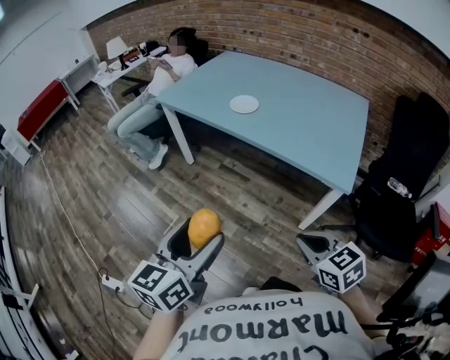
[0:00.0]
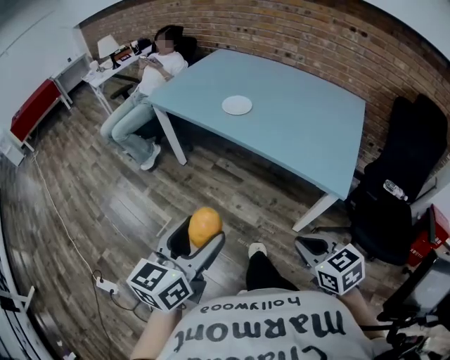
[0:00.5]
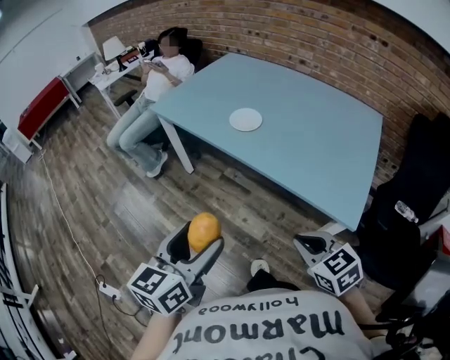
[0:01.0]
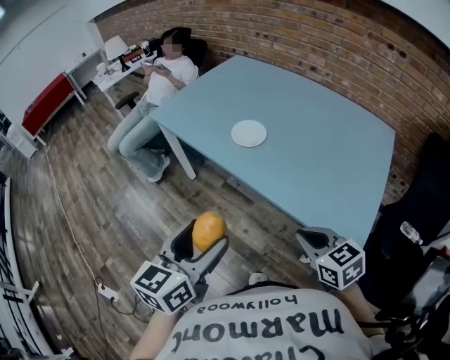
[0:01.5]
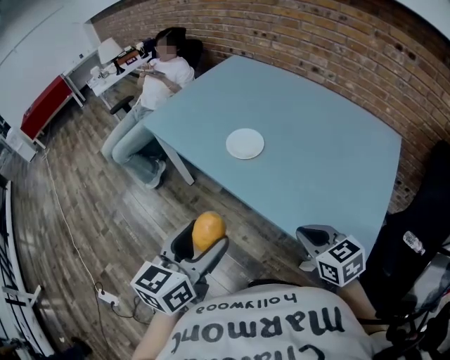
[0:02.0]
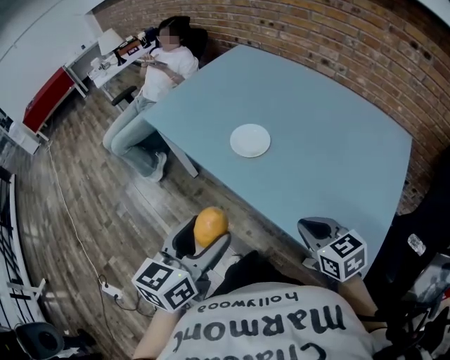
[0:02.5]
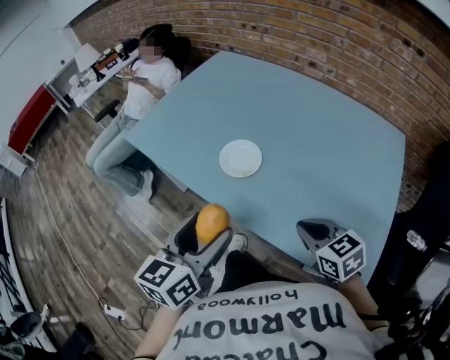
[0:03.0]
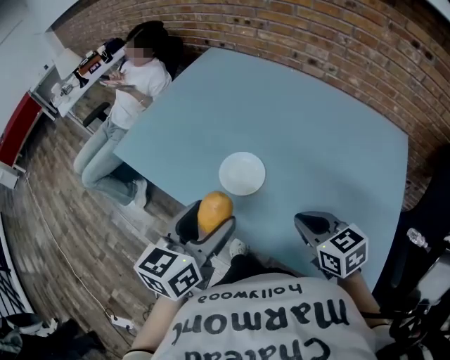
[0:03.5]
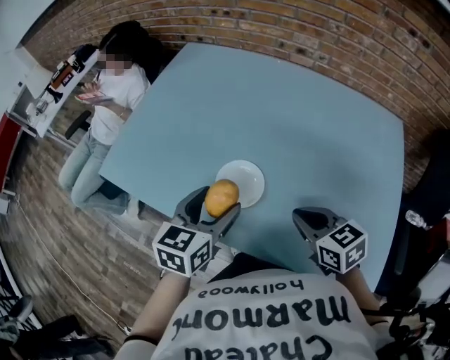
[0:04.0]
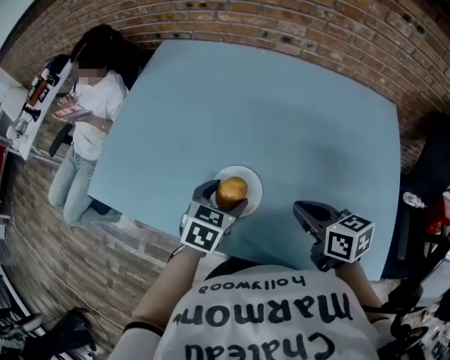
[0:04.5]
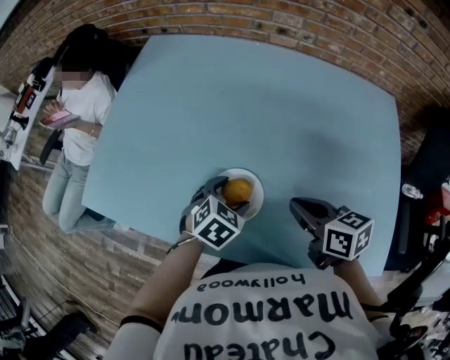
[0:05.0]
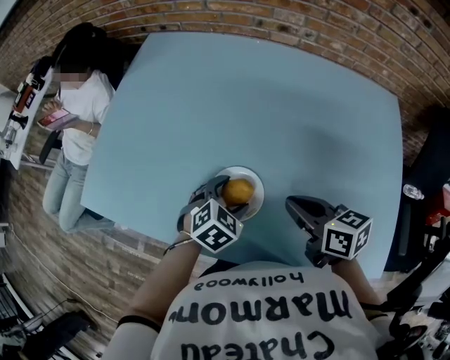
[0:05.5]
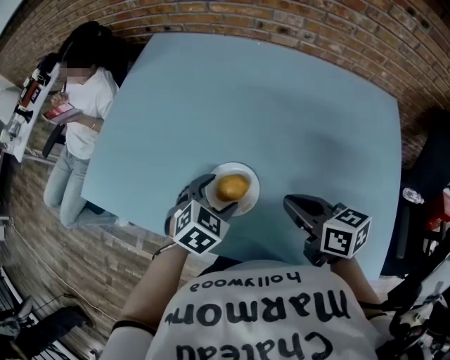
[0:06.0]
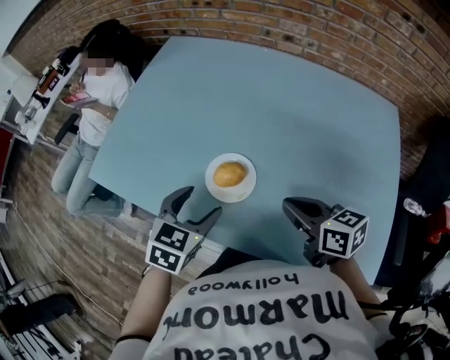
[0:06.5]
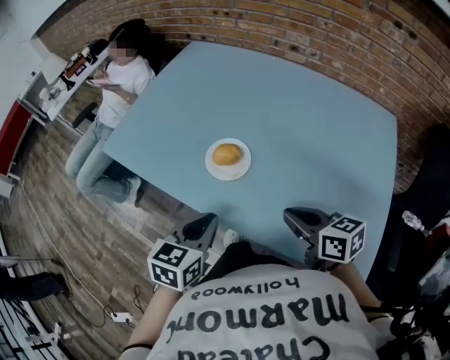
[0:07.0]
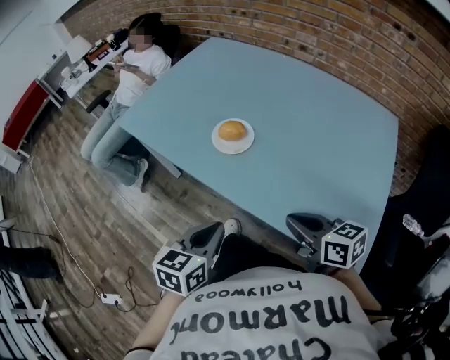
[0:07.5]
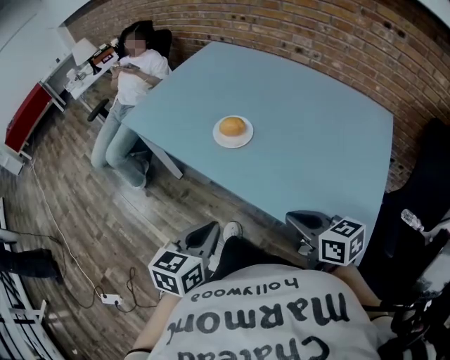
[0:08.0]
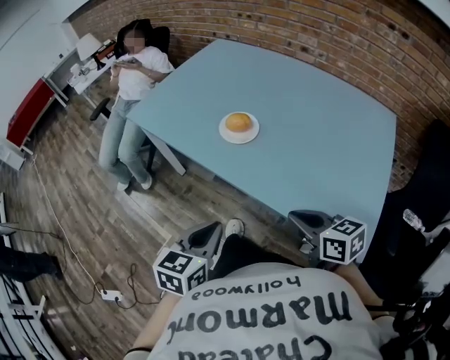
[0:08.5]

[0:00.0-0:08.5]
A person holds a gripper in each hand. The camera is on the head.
0:00.0 to 0:02.0: The two grippers go roughly 35 cm forward.
0:02.0 to 0:04.0: The grippers both shift forward by approximately 30 cm. The left gripper changes its angle by roughly 20 degrees.
0:04.0 to 0:06.5: The right gripper reaches about 10 cm forward, then returns, and turns by some 20 degrees; the left gripper goes downward and returns, some 15 cm each way, and rotates approximately 20 degrees.
0:06.5 to 0:08.5: Both grippers move backward, approximately 30 cm. The left gripper changes its angle by some 30 degrees, and closes.

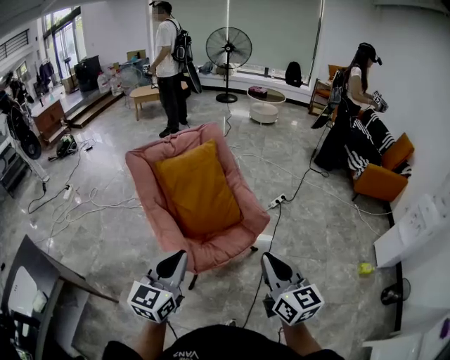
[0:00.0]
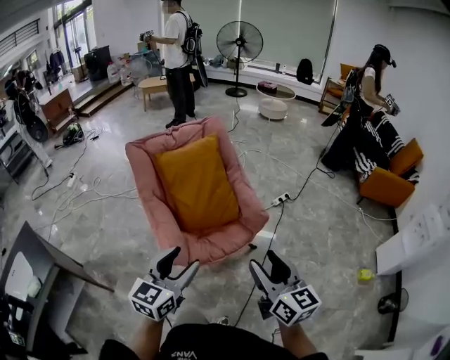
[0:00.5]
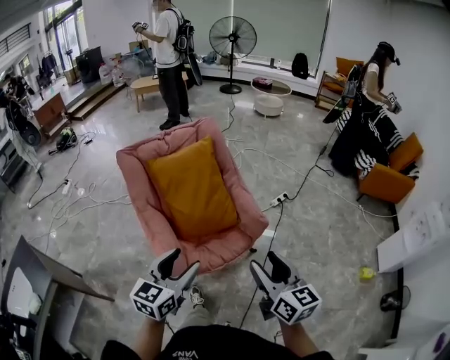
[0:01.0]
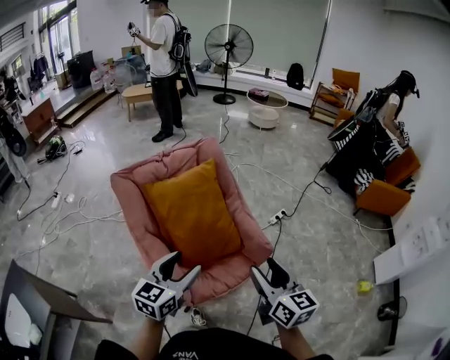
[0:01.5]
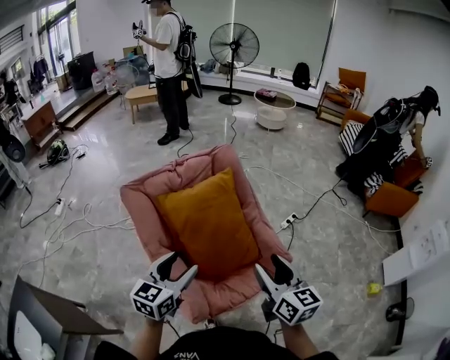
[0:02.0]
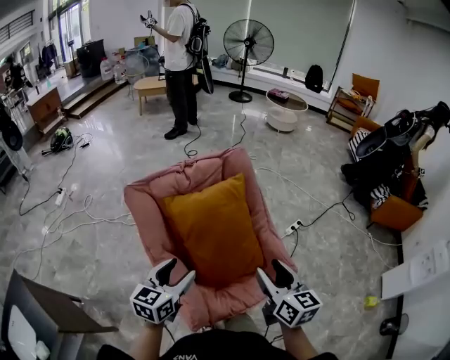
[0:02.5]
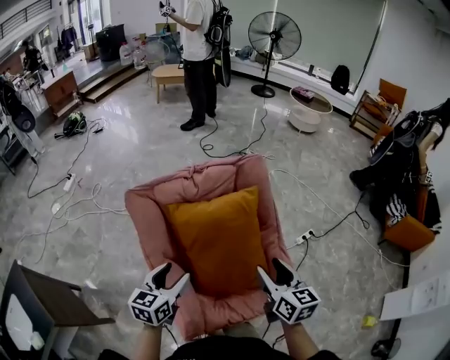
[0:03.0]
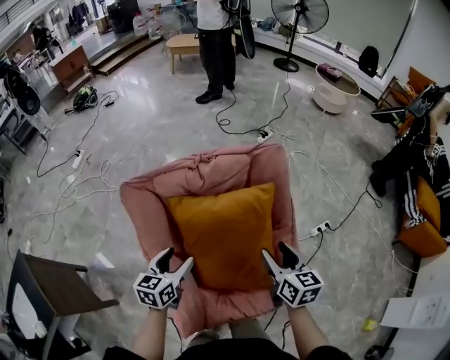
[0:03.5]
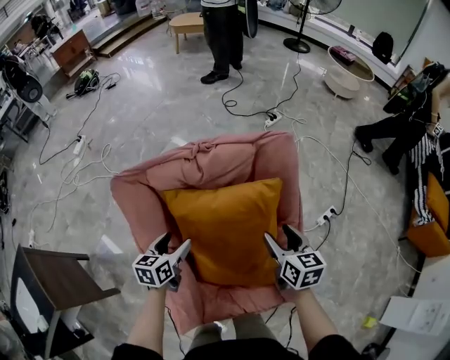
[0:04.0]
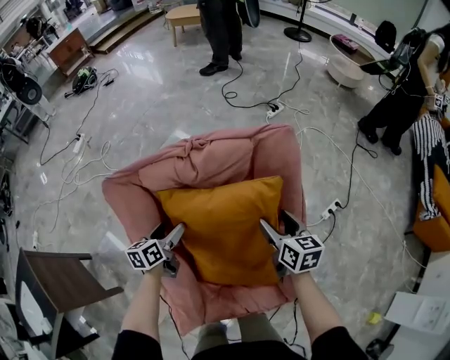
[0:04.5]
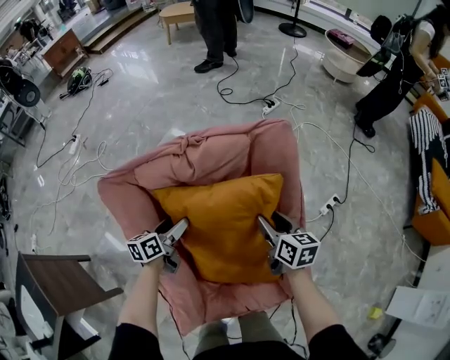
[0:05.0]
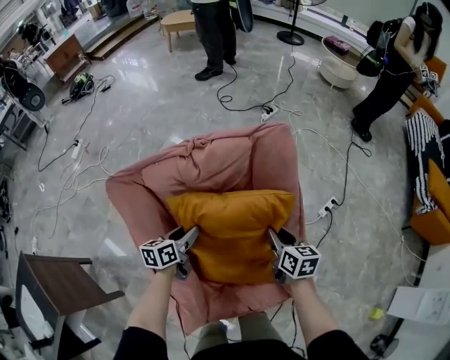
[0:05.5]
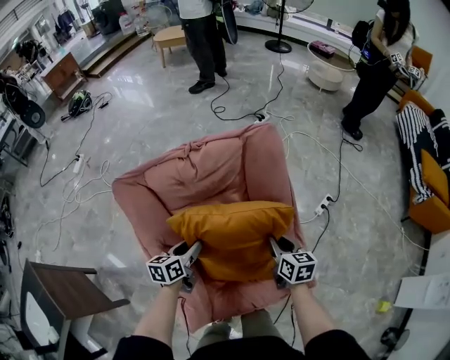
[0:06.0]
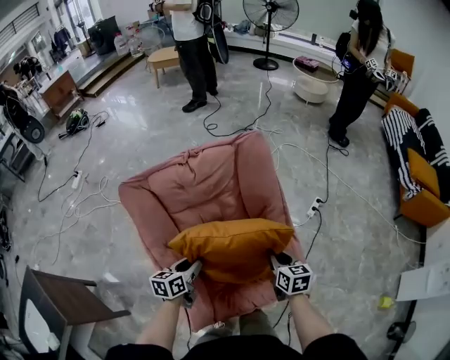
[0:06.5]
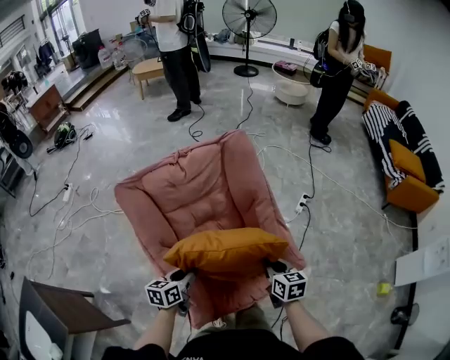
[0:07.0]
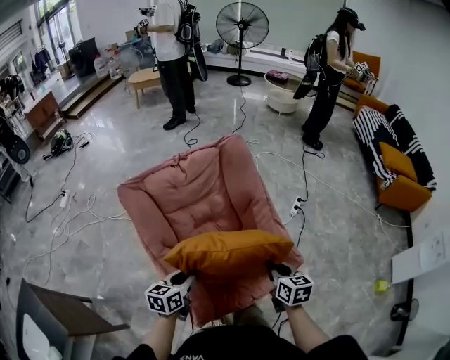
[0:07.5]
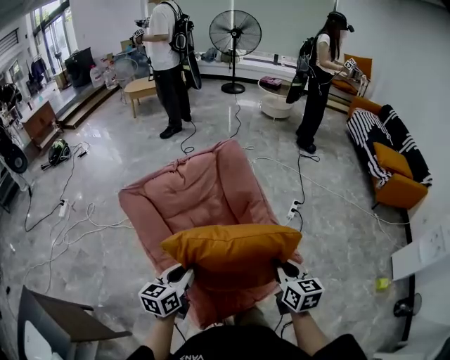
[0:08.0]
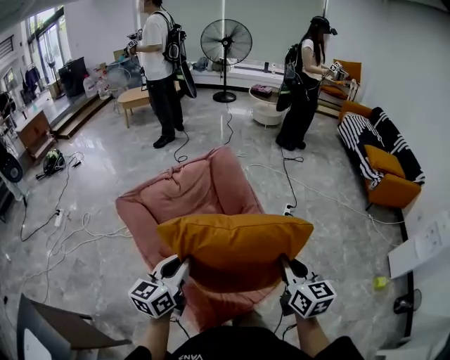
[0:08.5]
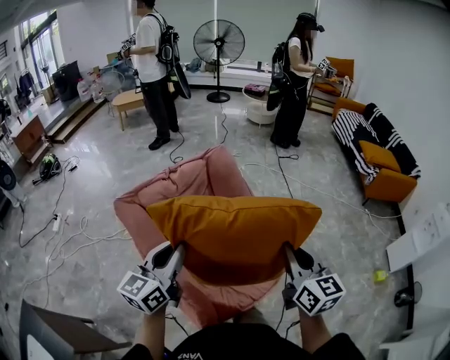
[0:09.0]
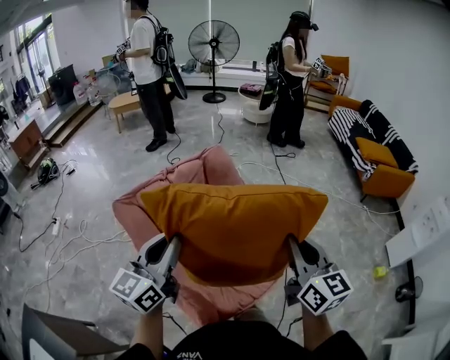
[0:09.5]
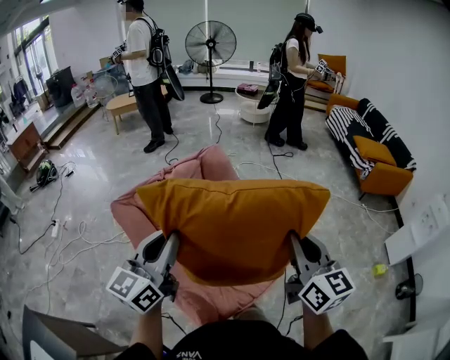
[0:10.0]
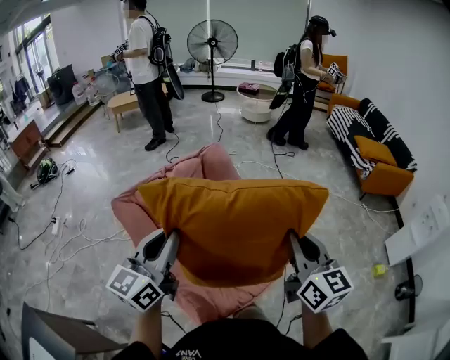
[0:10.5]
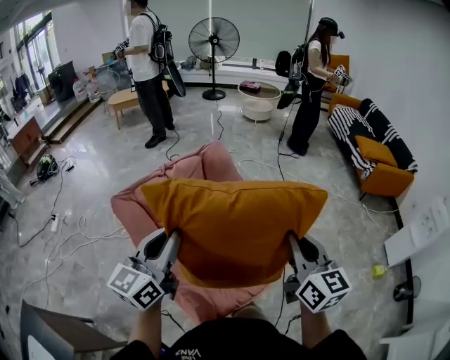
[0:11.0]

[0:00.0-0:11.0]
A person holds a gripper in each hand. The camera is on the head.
0:00.0 to 0:02.0: Both grippers move forward, approximately 30 cm. The right gripper opens up; the left gripper opens up.
0:02.0 to 0:03.5: The grippers both shift forward and downward by some 30 cm. The left gripper turns by roughly 30 degrees. The right gripper swivels some 20 degrees.
0:03.5 to 0:05.5: The grippers both shift downward and forward by some 15 cm. The right gripper closes, while the left gripper turns by some 20 degrees.
0:05.5 to 0:07.5: Both grippers move backward, roughly 25 cm. The left gripper swivels approximately 20 degrees.
0:07.5 to 0:09.0: Both grippers travel together upward, about 25 cm. The left gripper turns by some 30 degrees. Meanwhile the right gripper swivels some 30 degrees.
0:09.0 to 0:11.0: The left gripper is displaced upward by roughly 5 cm.

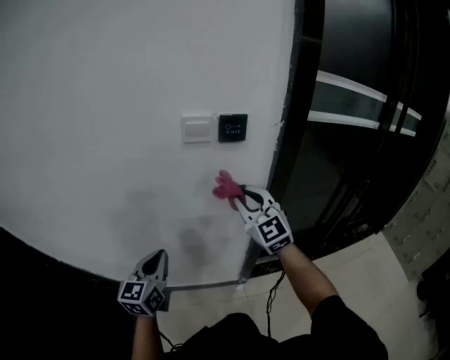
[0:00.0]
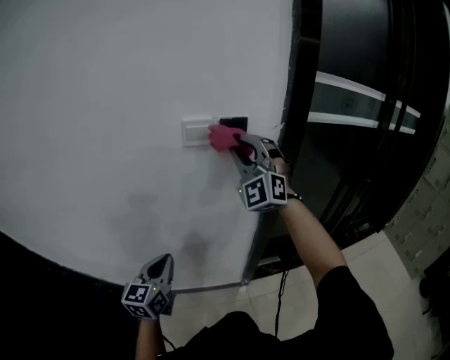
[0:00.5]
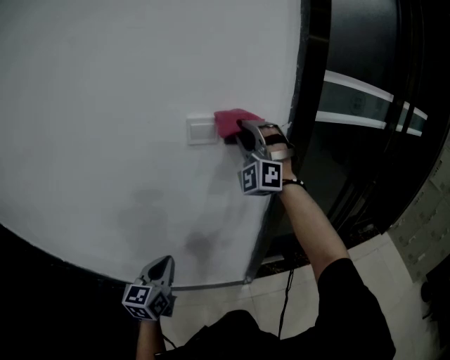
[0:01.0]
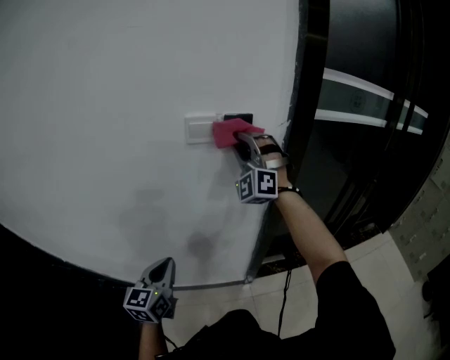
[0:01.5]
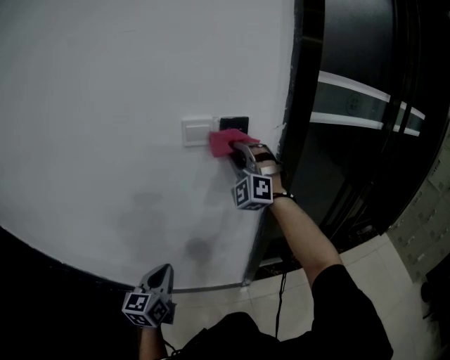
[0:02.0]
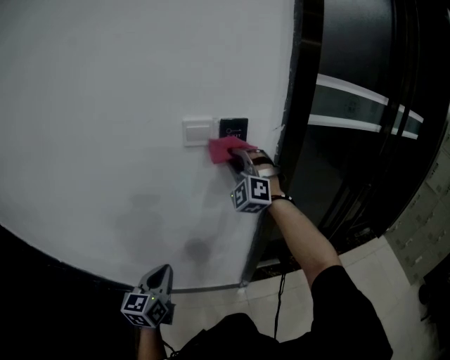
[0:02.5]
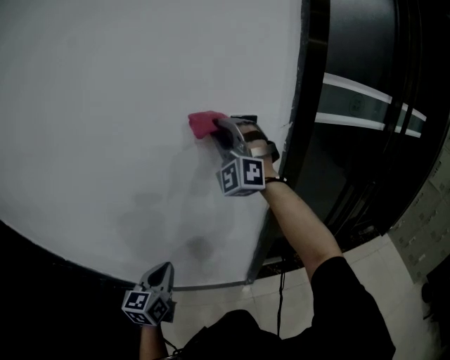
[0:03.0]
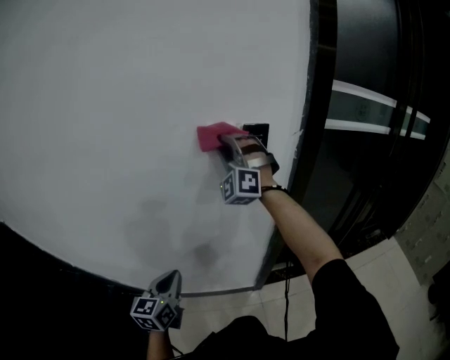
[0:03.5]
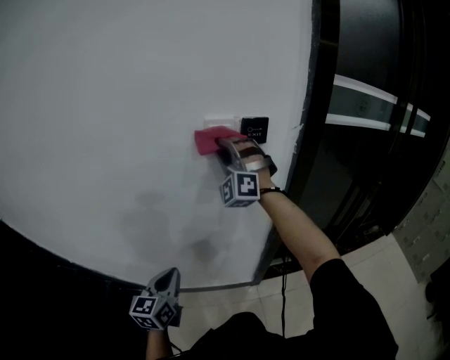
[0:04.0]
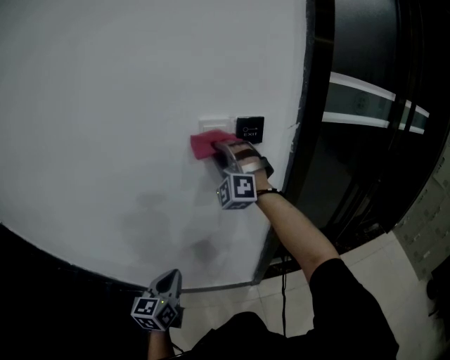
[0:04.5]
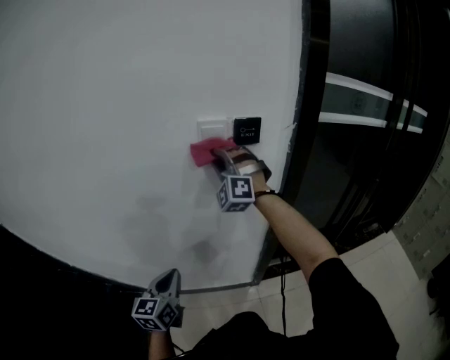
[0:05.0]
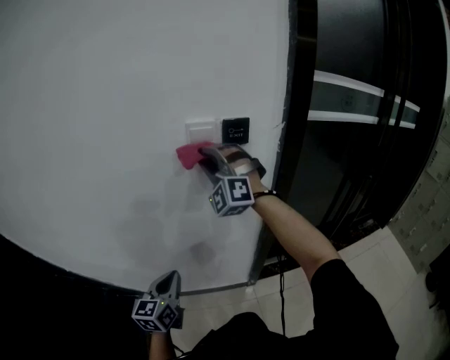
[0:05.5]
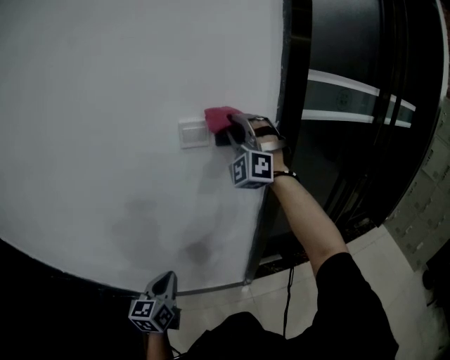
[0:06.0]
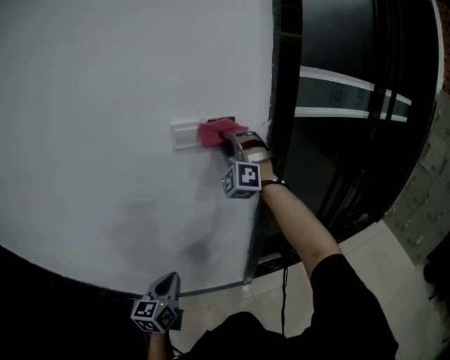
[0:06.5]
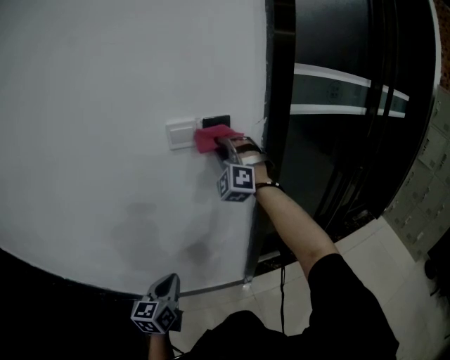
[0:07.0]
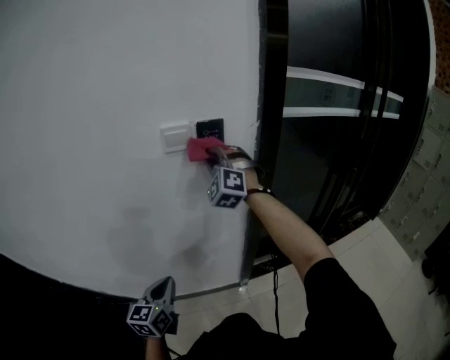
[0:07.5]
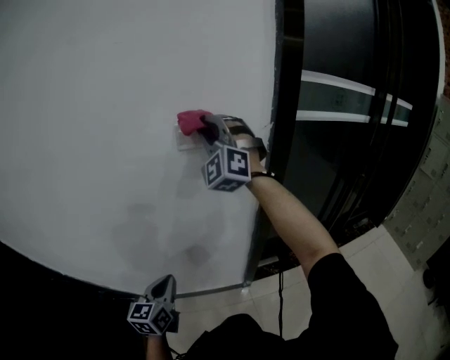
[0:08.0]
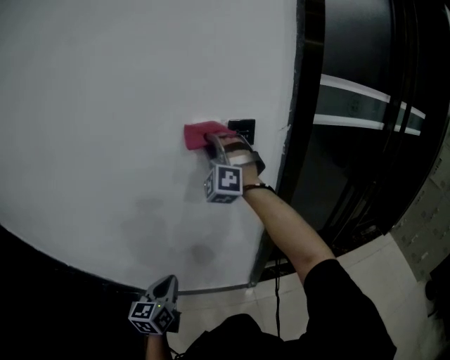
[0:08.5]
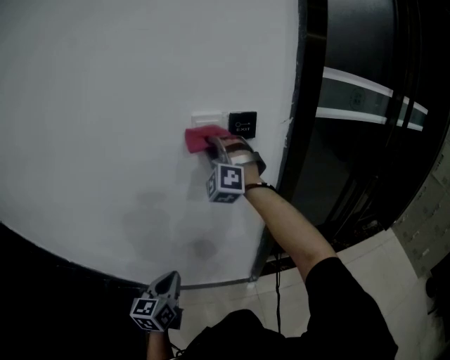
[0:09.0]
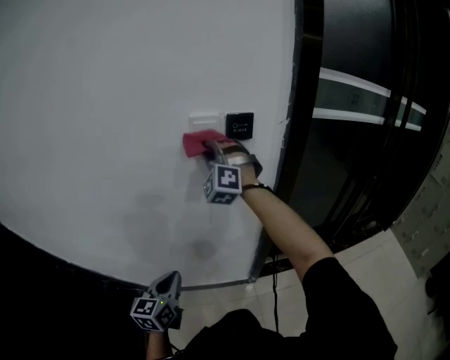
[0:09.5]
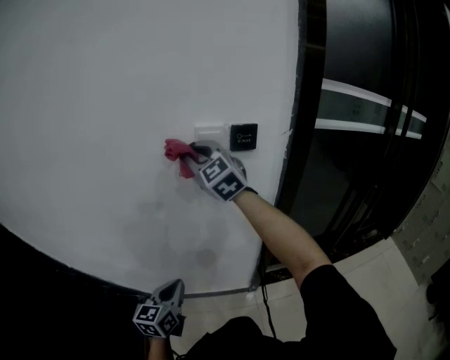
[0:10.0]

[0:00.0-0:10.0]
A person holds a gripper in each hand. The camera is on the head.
0:00.0 to 0:02.0: The right gripper is displaced forward and upward by roughly 15 cm, and rolls counterclockwise, seen from behind, by about 50 degrees.
0:02.0 to 0:04.0: The right gripper heads to the left, covering roughly 10 cm, and reaches approximately 10 cm upward, then returns.
0:04.0 to 0:06.0: The right gripper heads to the right and upward, covering roughly 15 cm.
0:06.0 to 0:08.0: The right gripper is displaced to the left by approximately 5 cm, and moves some 10 cm downward and comes back.
0:08.0 to 0:10.0: The right gripper moves to the left and downward, about 10 cm, and rolls clockwise, seen from behind, by roughly 40 degrees.
